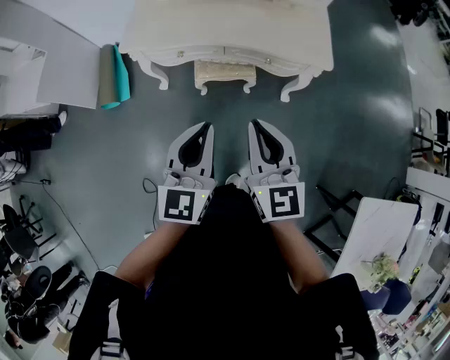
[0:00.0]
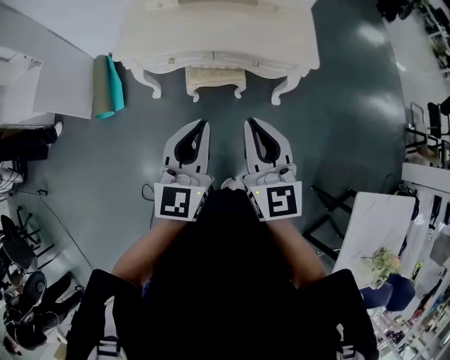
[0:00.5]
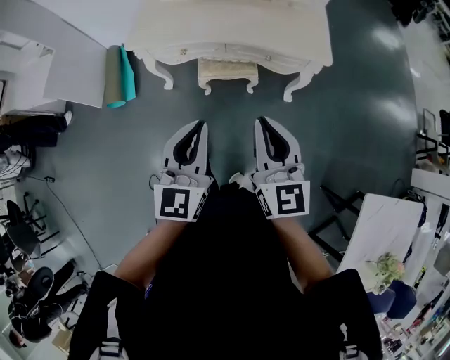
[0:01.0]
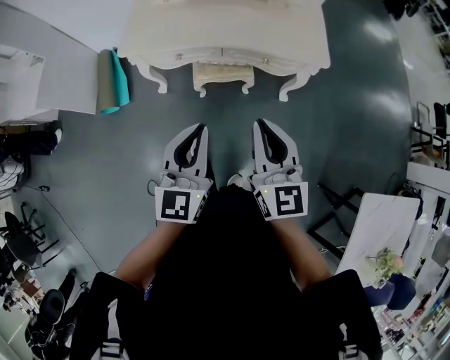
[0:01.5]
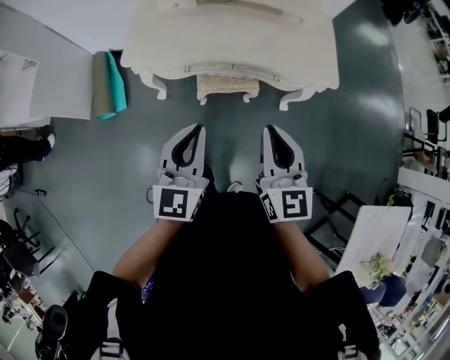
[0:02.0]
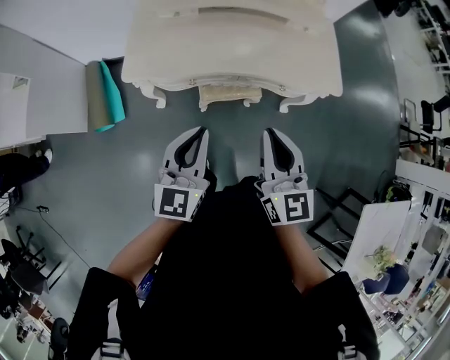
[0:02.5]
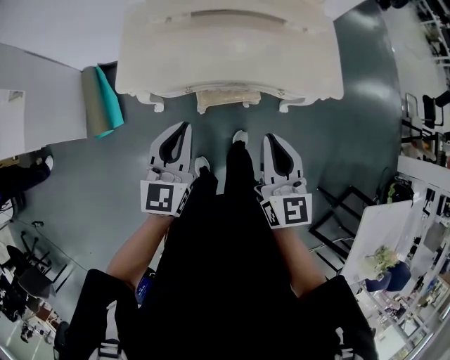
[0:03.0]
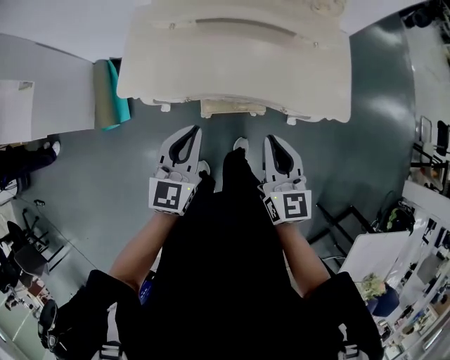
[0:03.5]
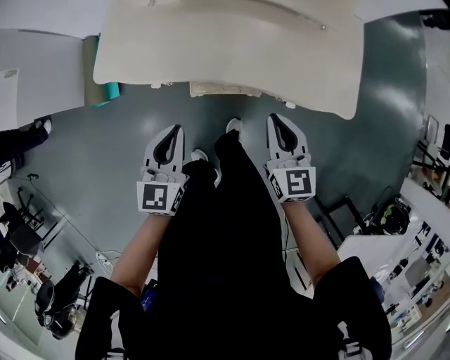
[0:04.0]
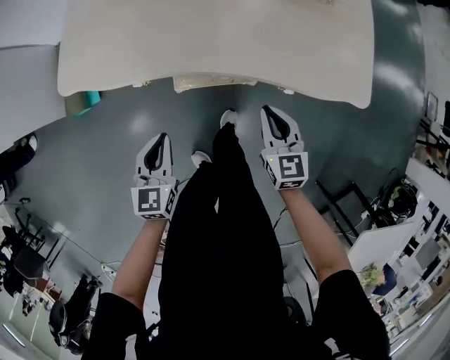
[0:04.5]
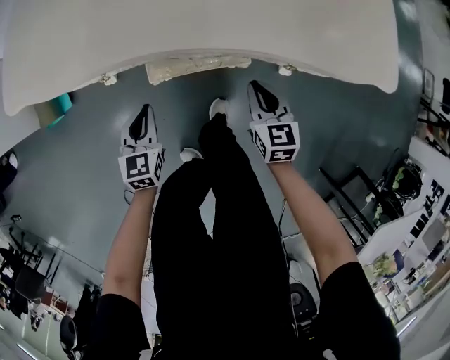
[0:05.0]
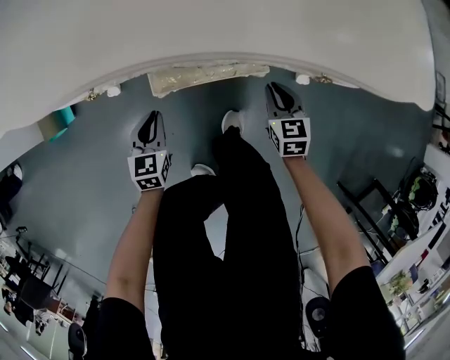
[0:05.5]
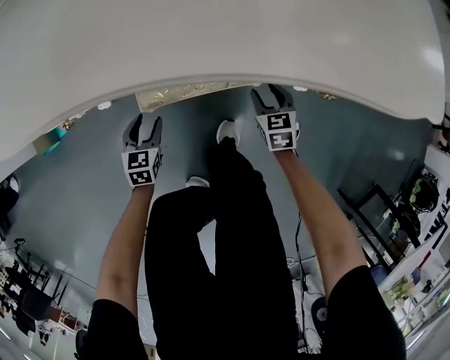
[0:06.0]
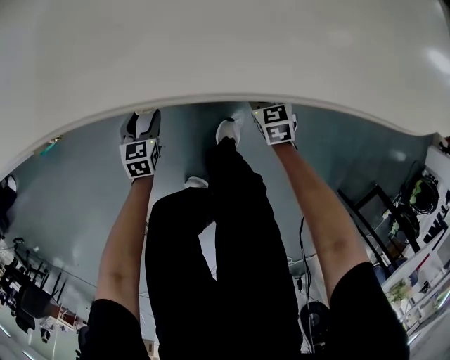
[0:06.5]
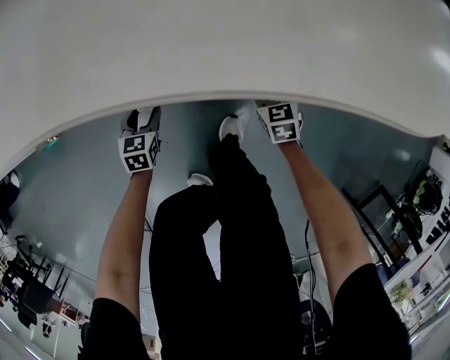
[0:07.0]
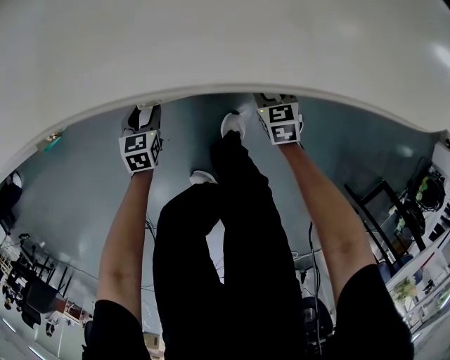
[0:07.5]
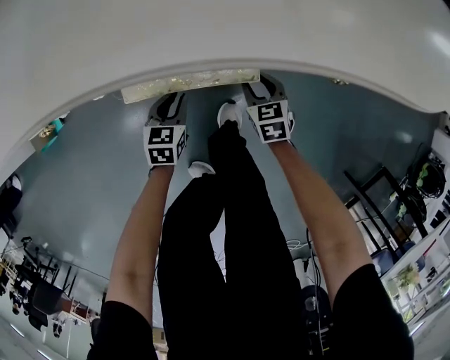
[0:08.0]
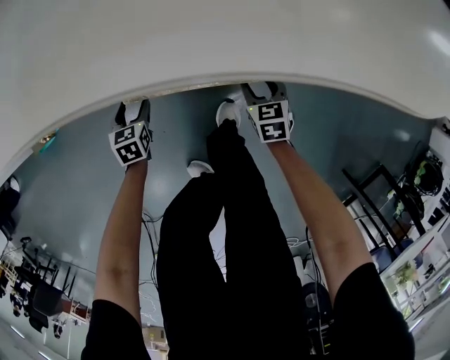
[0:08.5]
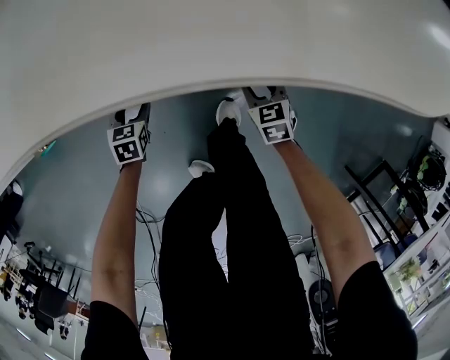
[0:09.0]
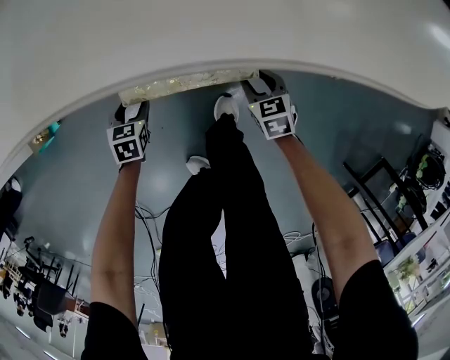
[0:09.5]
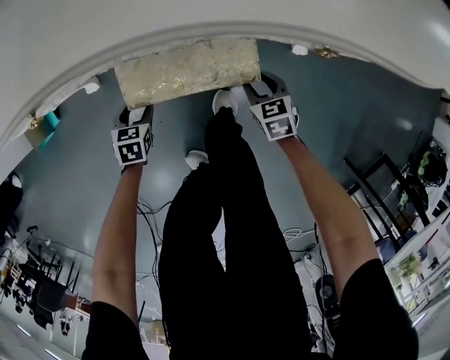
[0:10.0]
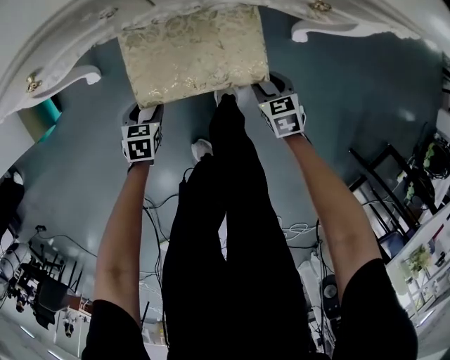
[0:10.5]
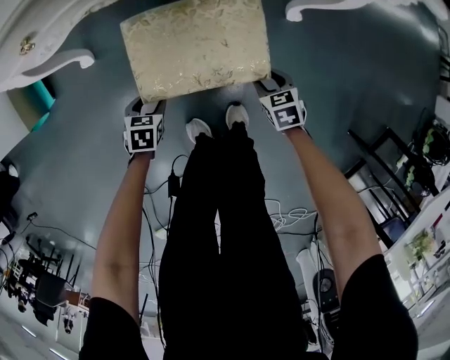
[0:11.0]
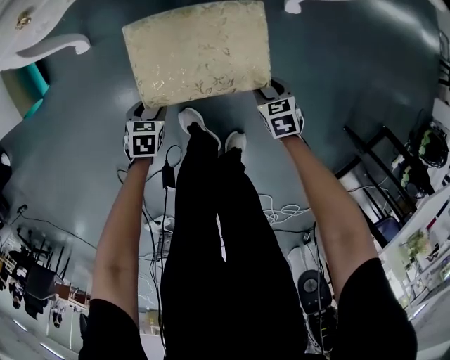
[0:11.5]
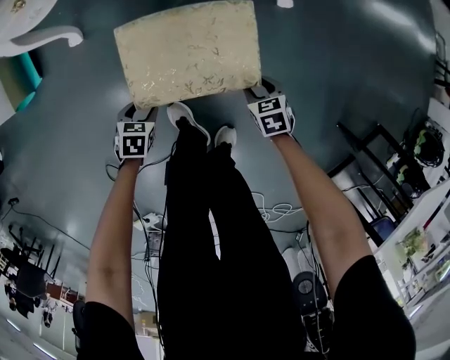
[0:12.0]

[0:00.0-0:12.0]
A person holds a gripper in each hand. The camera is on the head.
0:00.0 to 0:02.0: The right gripper shifts about 10 cm forward. The left gripper goes approximately 15 cm to the left and forward.
0:02.0 to 0:04.0: Both grippers travel together forward and downward, roughly 25 cm.
0:04.0 to 0:06.0: The grippers both shift downward by roughly 50 cm. The right gripper rotates some 30 degrees, and opens; the left gripper changes its angle by some 20 degrees, and opens up.
0:06.0 to 0:08.0: The left gripper shifts some 10 cm to the right, and closes.
0:08.0 to 0:10.0: The left gripper is displaced to the left by about 10 cm, and opens its fingers.
0:10.0 to 0:12.0: Both grippers travel together backward, some 25 cm.

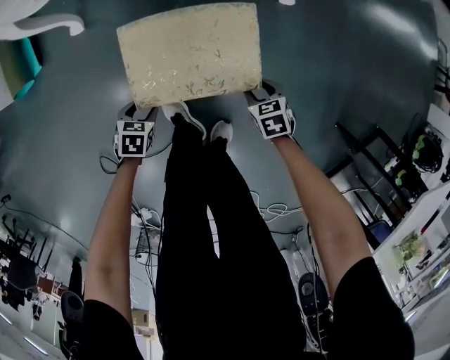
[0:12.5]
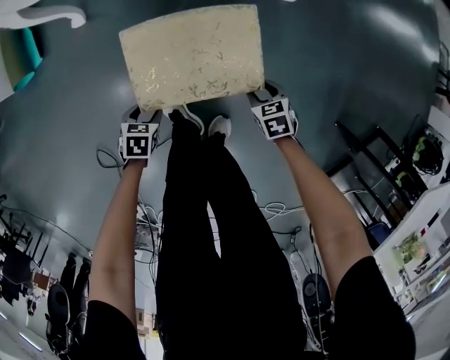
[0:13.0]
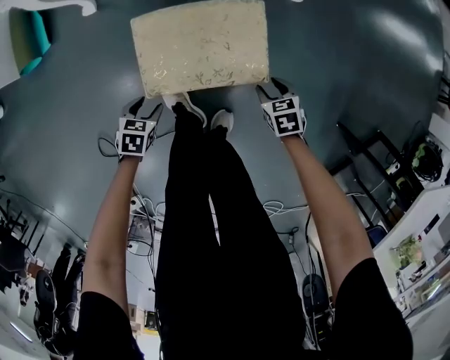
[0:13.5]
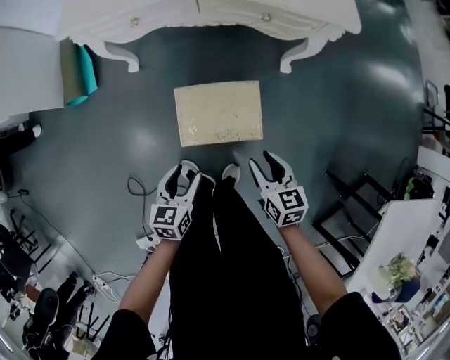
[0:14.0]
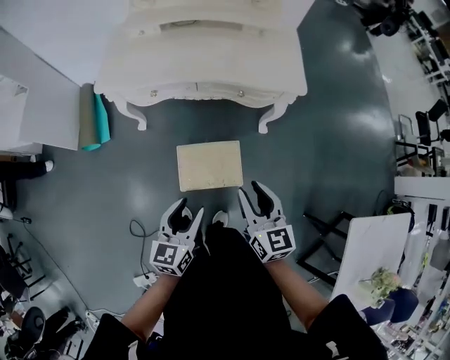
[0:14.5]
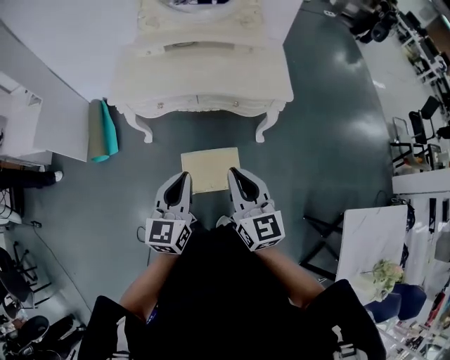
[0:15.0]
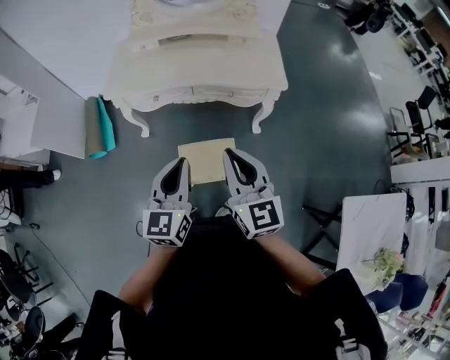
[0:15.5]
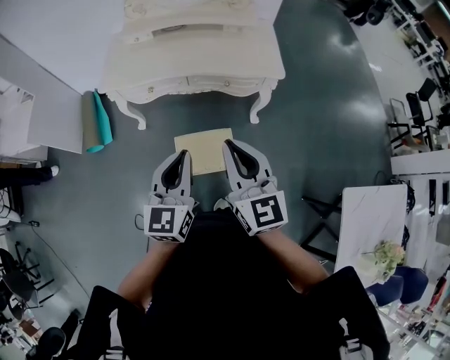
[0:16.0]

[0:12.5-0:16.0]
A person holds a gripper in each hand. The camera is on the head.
0:12.5 to 0:14.5: Both grippers travel together upward, roughly 60 cm. The left gripper angles its fingers upward, by approximately 50 degrees; the right gripper tips its fingers upward by about 50 degrees.
0:14.5 to 0:16.0: Both grippers travel together upward, about 20 cm. The left gripper closes up. The right gripper closes up.

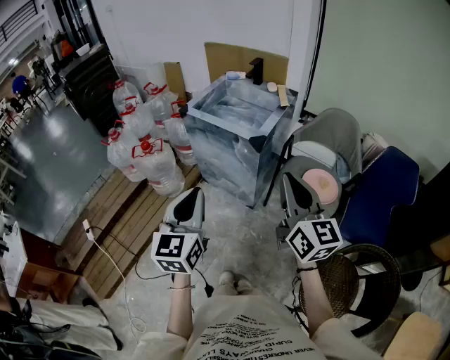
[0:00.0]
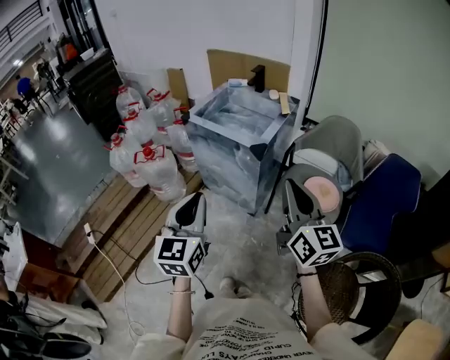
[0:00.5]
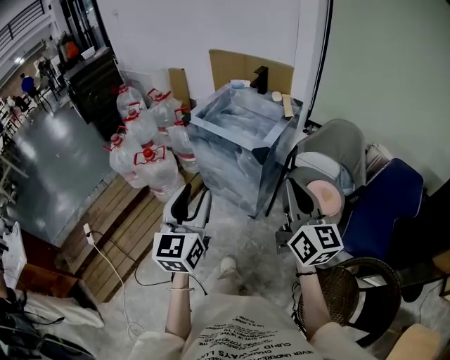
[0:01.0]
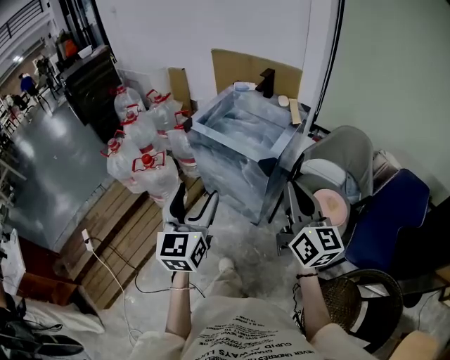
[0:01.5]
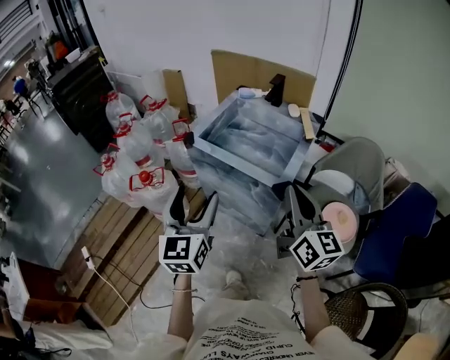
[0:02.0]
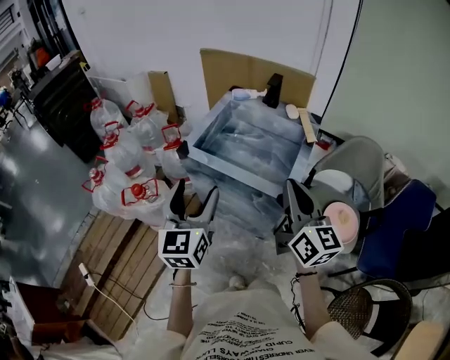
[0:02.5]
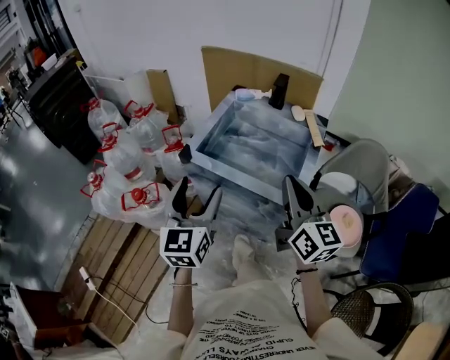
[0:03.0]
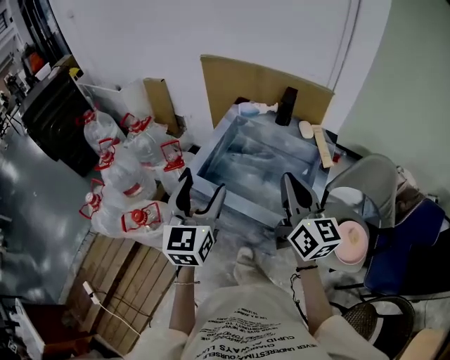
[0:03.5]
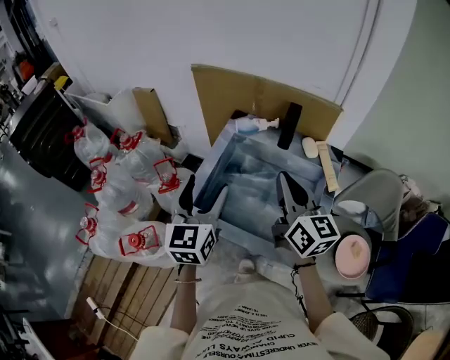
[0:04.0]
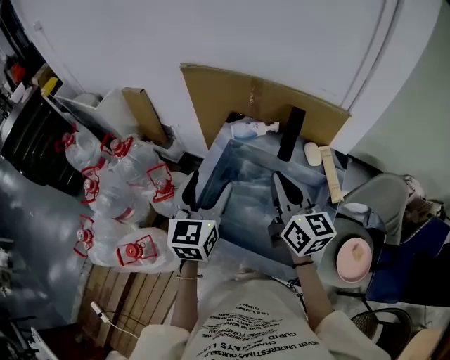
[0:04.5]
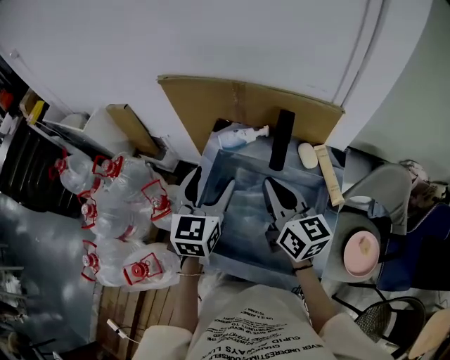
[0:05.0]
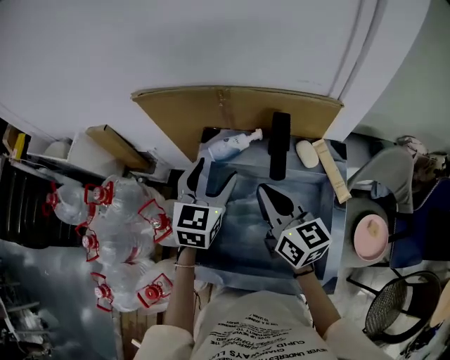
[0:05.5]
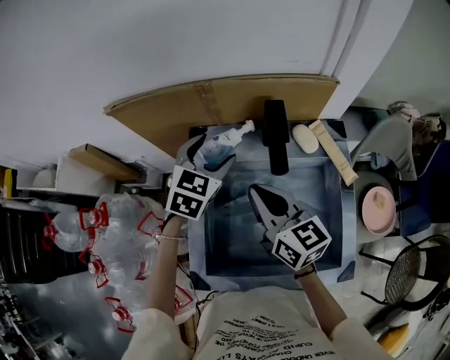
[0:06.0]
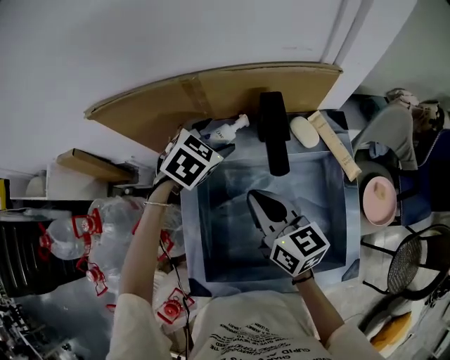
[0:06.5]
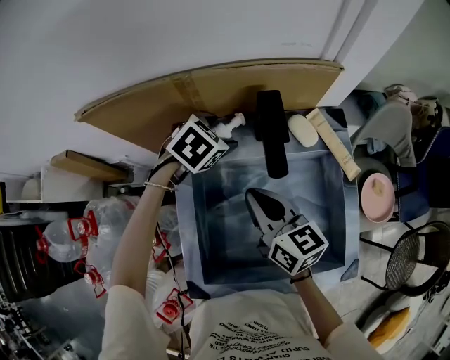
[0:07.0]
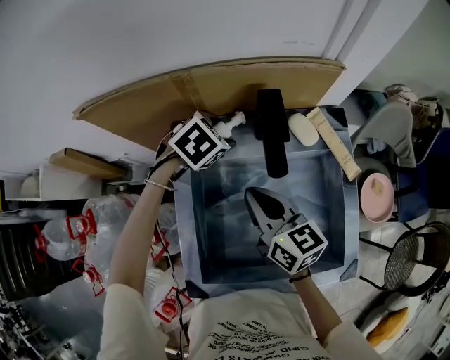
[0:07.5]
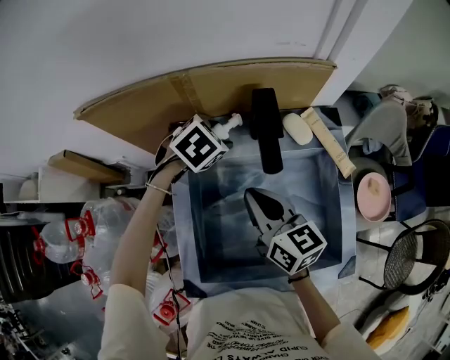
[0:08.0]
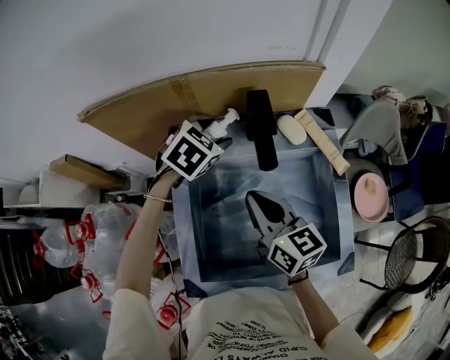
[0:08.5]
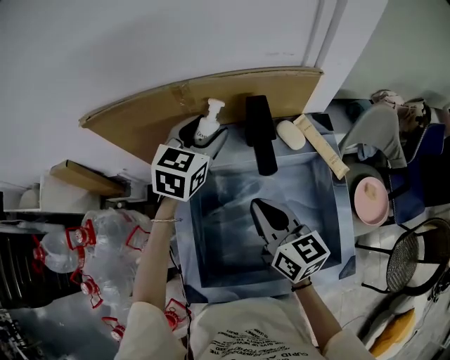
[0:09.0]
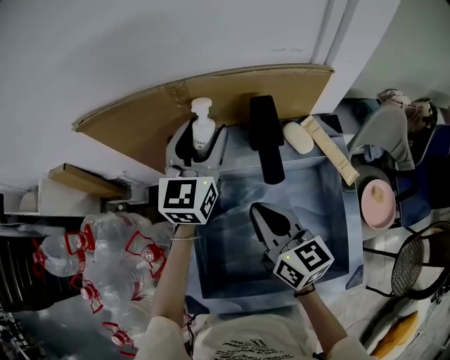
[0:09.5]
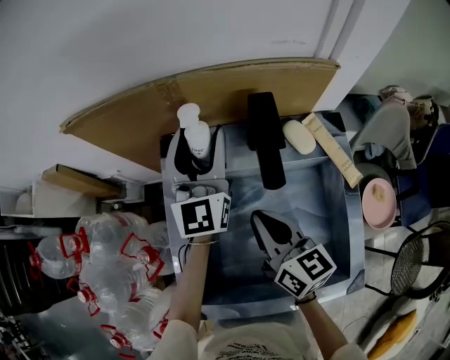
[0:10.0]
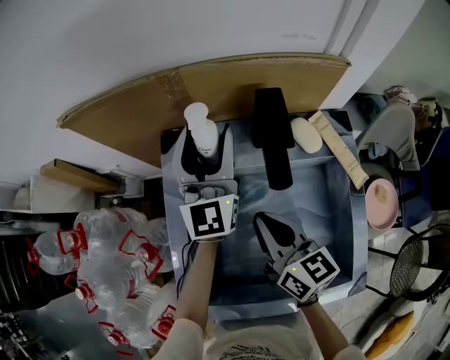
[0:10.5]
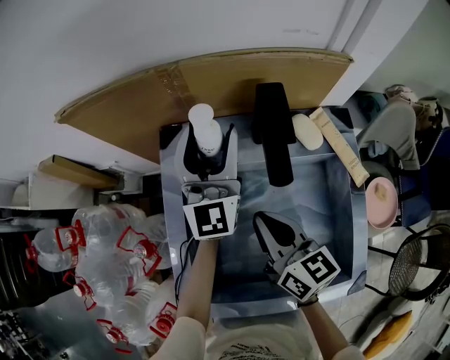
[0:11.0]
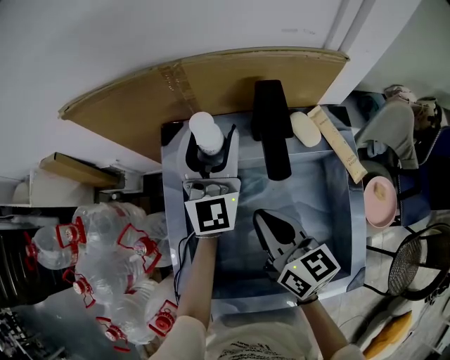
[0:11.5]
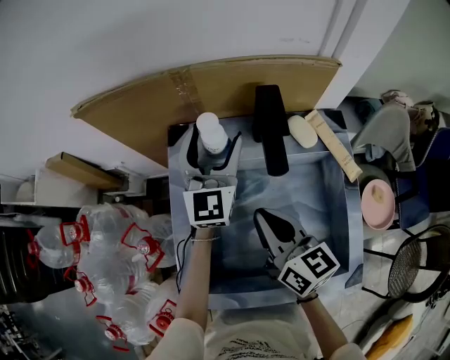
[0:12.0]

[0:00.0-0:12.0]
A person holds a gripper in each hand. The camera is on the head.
0:00.0 to 0:02.0: Both grippers move forward, some 25 cm. The left gripper opens its fingers.
0:02.0 to 0:04.0: Both grippers travel together forward, about 35 cm.
0:04.0 to 0:06.0: The left gripper heads forward, covering roughly 30 cm, and turns by about 50 degrees. The right gripper heads forward and downward, covering about 15 cm.
0:06.0 to 0:08.0: The left gripper heads downward, covering roughly 10 cm, and turns by roughly 30 degrees.
0:08.0 to 0:10.0: The left gripper moves upward, roughly 15 cm, and tilts its fingers some 70 degrees upward.
0:10.0 to 0:12.0: The grippers make only small movements.
